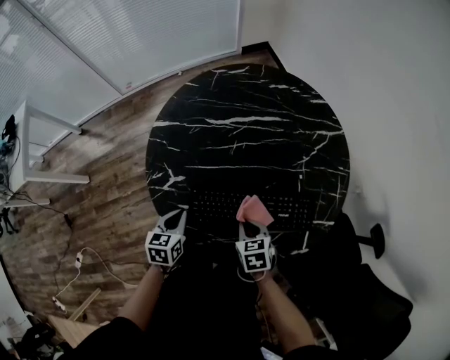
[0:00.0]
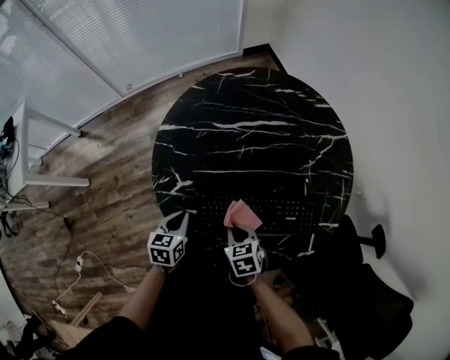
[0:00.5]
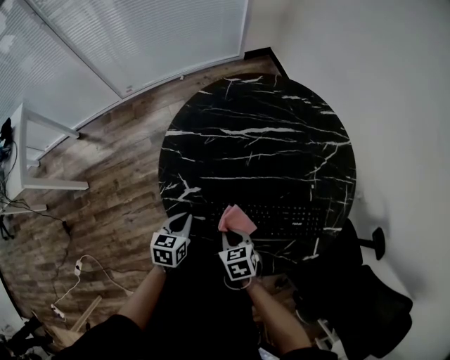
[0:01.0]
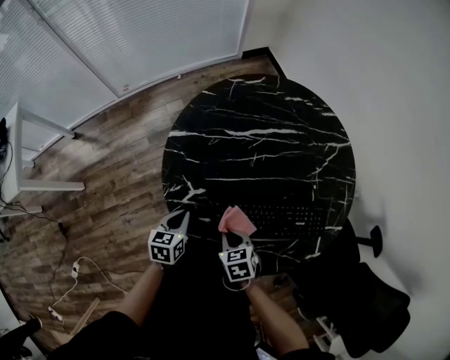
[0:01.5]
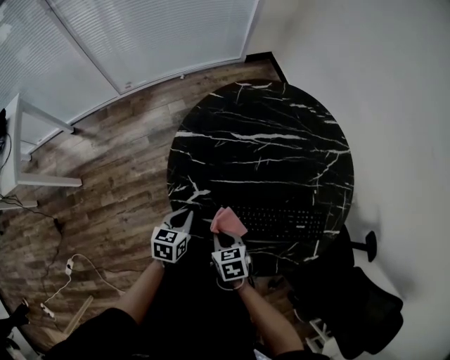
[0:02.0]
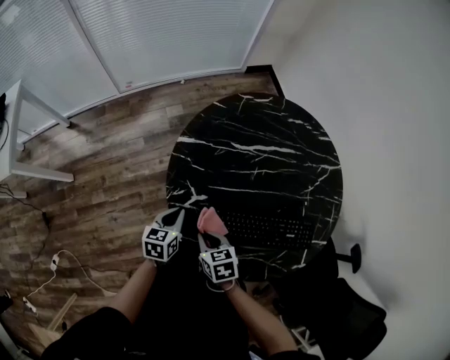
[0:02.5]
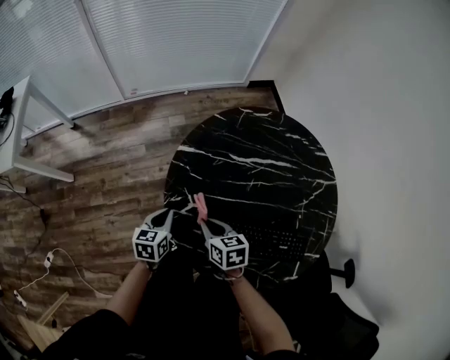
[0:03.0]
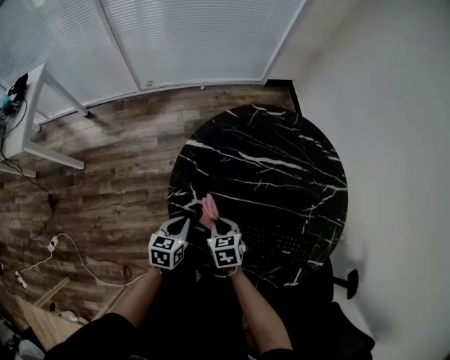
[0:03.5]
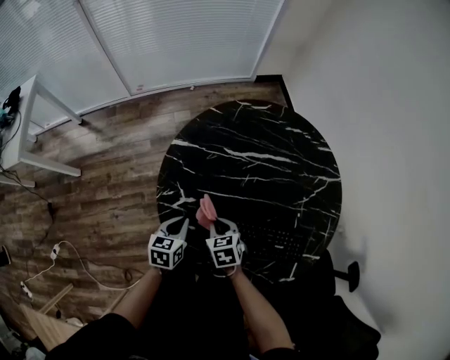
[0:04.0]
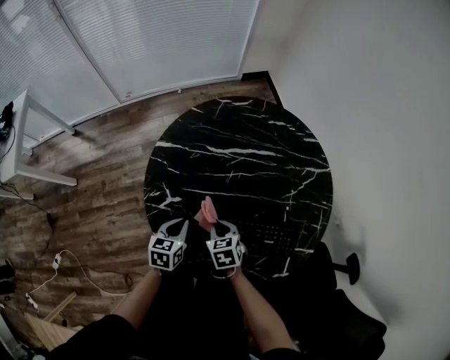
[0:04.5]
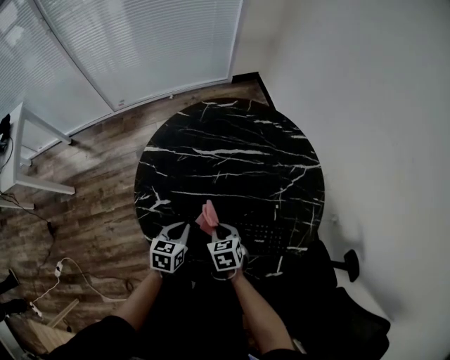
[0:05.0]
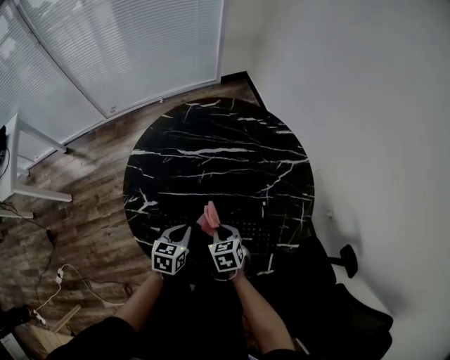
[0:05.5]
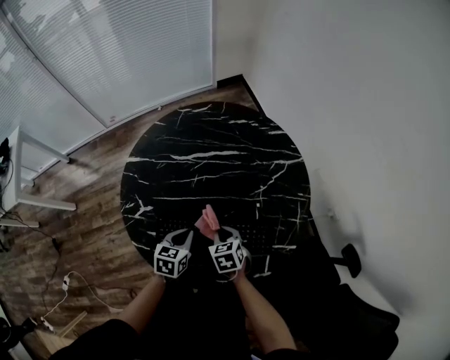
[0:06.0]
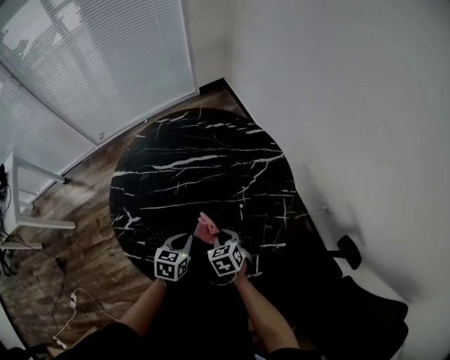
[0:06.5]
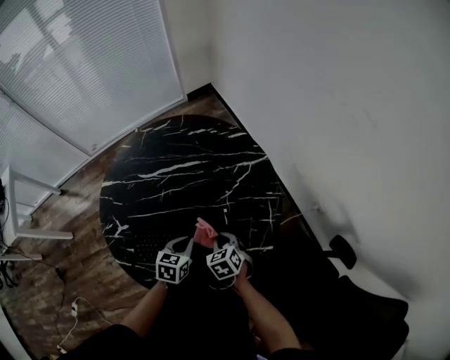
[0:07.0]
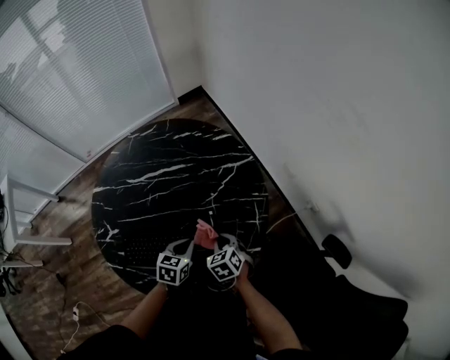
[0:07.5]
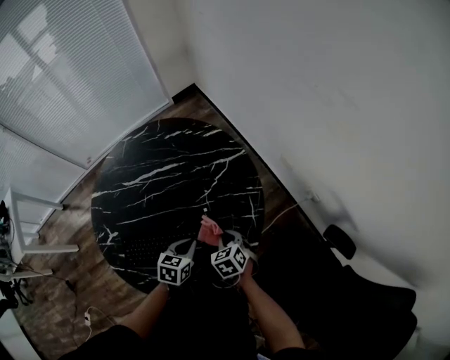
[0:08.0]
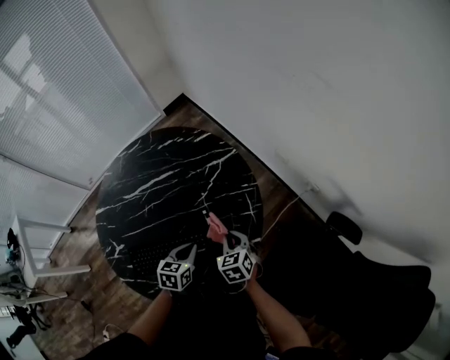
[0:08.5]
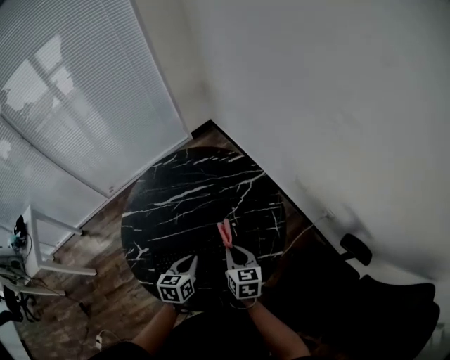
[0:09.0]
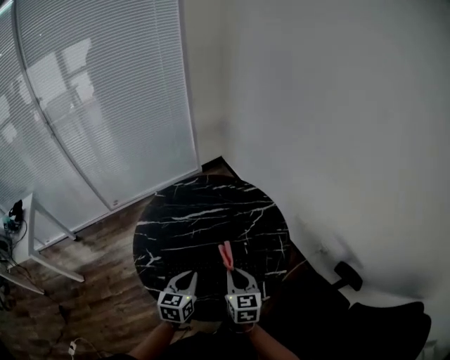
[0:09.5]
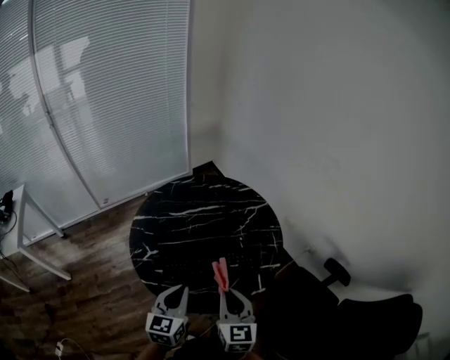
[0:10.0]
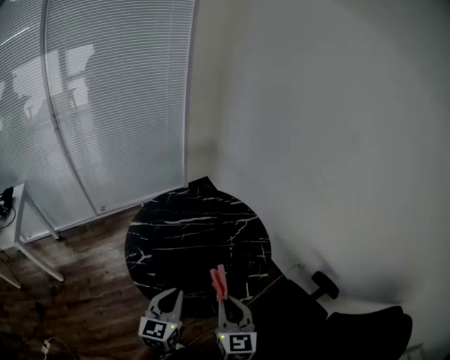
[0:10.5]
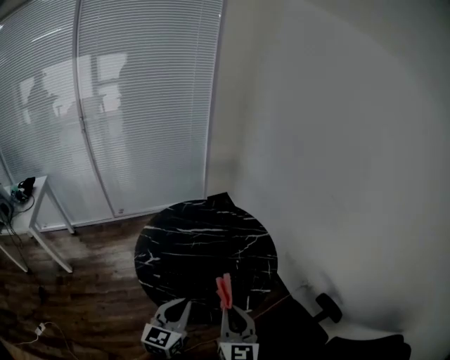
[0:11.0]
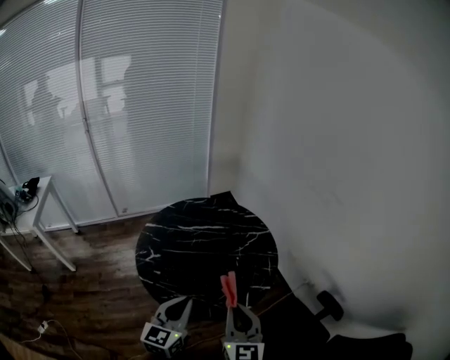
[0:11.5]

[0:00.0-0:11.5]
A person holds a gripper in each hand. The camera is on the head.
0:00.0 to 0:02.0: The left gripper is displaced to the left by roughly 5 cm. Meanwhile the right gripper goes about 15 cm to the left.
0:02.0 to 0:04.0: The right gripper is displaced forward and to the right by some 10 cm.
0:04.0 to 0:06.0: The two grippers go some 20 cm to the right.
0:06.0 to 0:07.5: Both grippers travel together to the right, roughly 15 cm.
0:07.5 to 0:09.5: The grippers both shift upward, to the left and backward by some 25 cm. The left gripper swivels about 20 degrees, while the right gripper points its fingers about 30 degrees further upward.
0:09.5 to 0:11.5: Both grippers travel together backward and upward, about 25 cm. The left gripper swivels approximately 20 degrees.

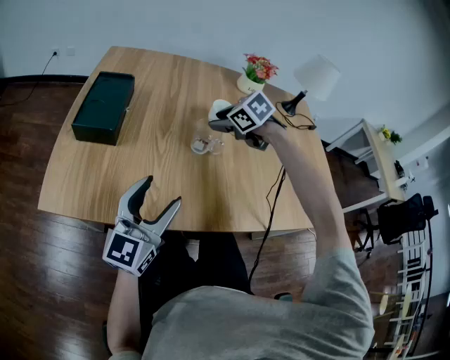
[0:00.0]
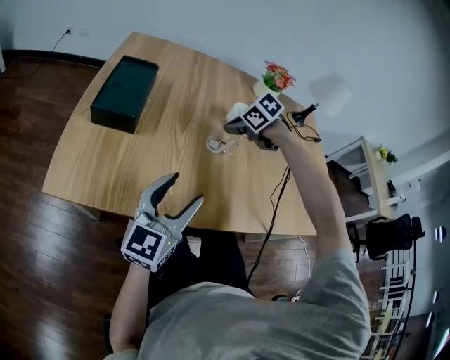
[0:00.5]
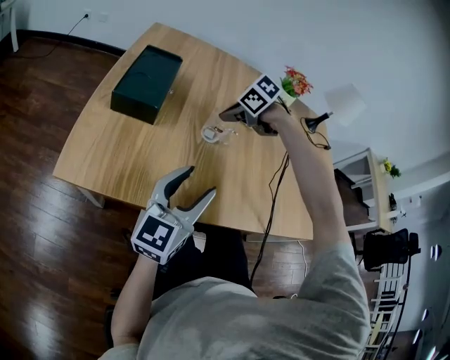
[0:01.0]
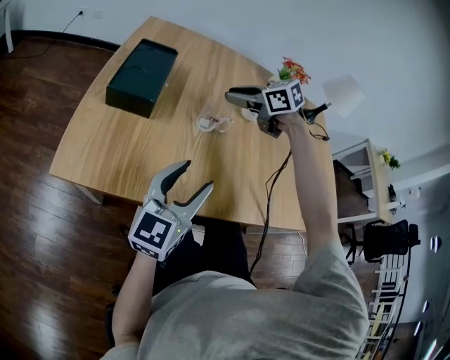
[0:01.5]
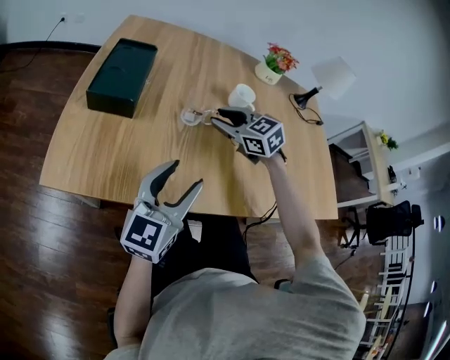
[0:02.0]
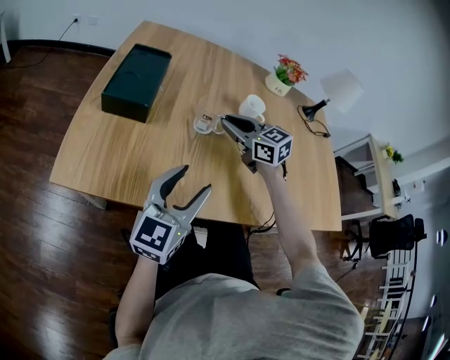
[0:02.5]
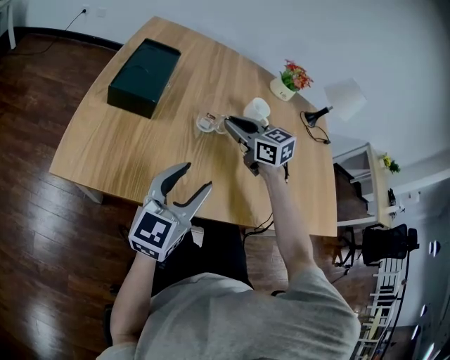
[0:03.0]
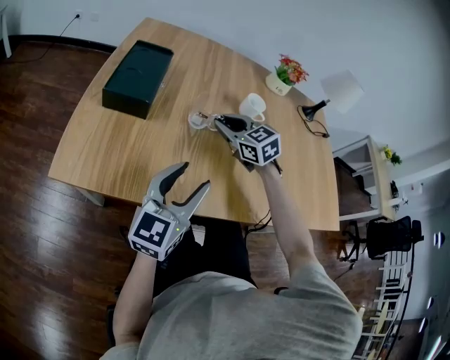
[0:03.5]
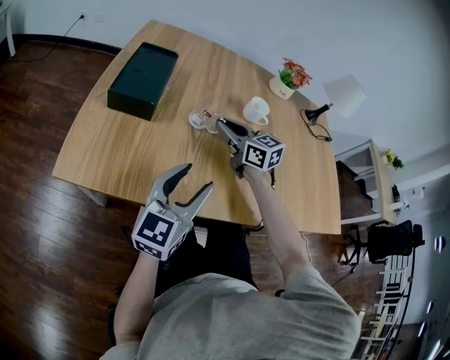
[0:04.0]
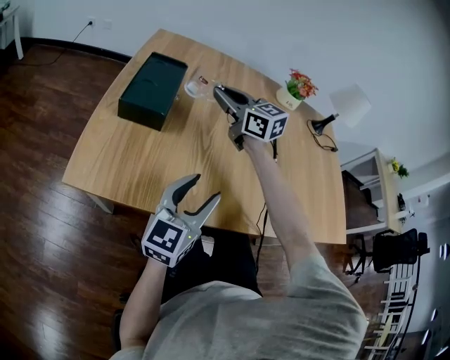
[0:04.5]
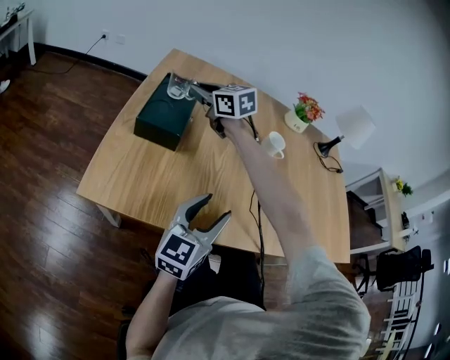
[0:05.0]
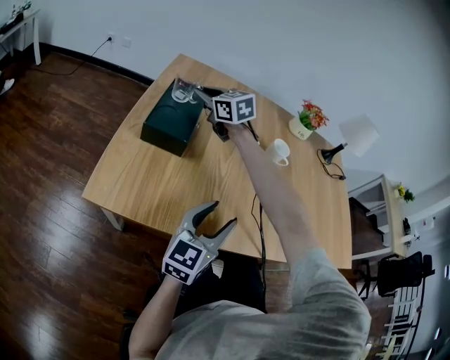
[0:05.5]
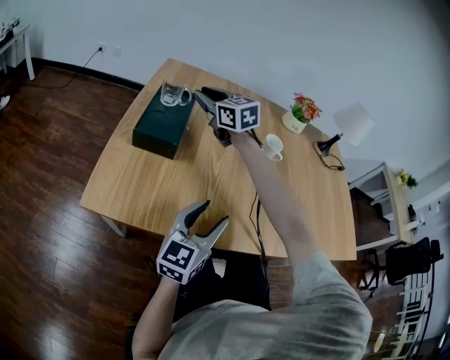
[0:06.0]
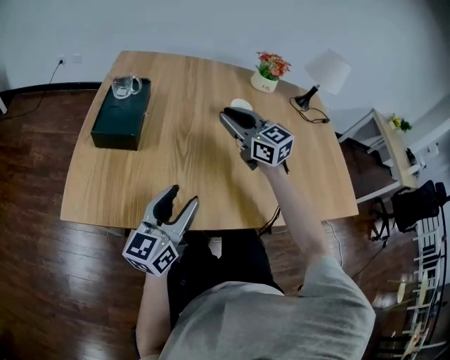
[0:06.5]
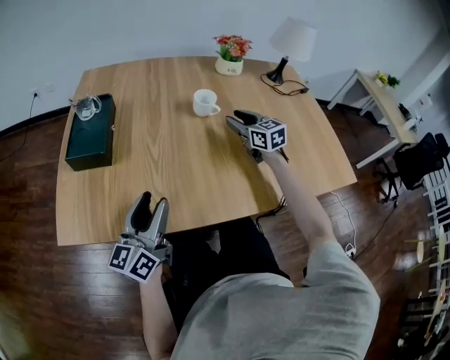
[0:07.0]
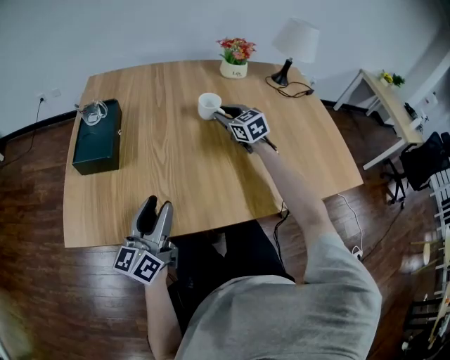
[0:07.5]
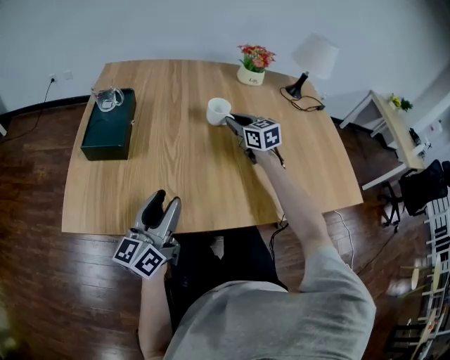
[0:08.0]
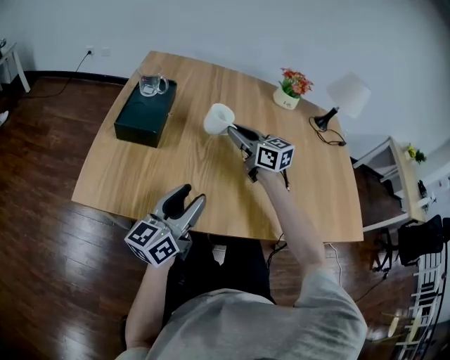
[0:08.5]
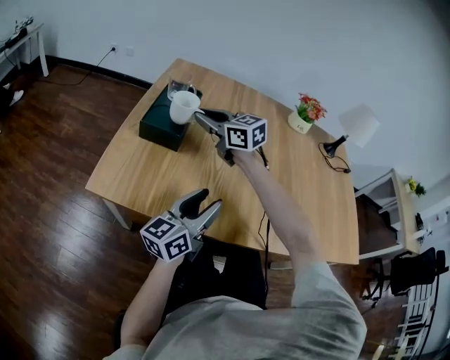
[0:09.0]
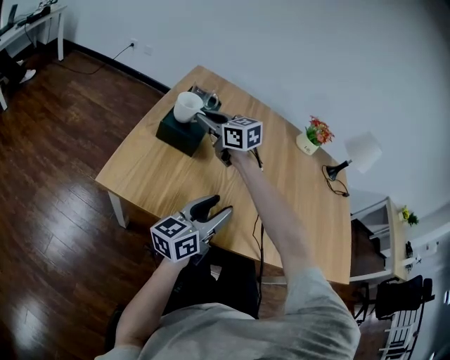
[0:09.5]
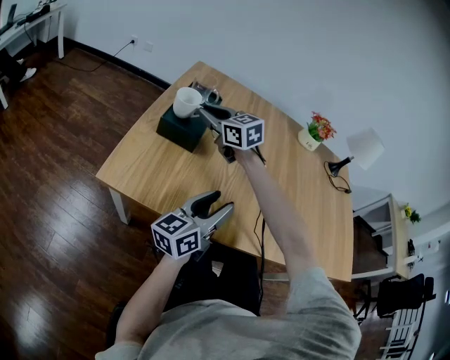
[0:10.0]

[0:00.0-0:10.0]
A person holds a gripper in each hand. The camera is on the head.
0:00.0 to 0:02.0: The right gripper moves to the left, roughly 10 cm, changes its angle by roughly 20 degrees, and closes and opens again.
0:02.0 to 0:04.0: The right gripper turns by approximately 30 degrees.
0:04.0 to 0:06.0: The right gripper moves to the left, forward and upward, some 25 cm.
0:06.0 to 0:08.0: The right gripper shifts roughly 35 cm to the right, and swivels some 20 degrees.
0:08.0 to 0:10.0: The right gripper goes roughly 40 cm to the left, and turns by some 30 degrees.

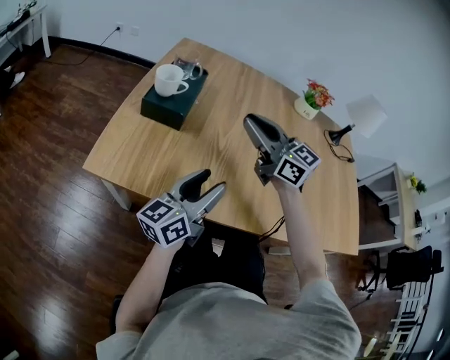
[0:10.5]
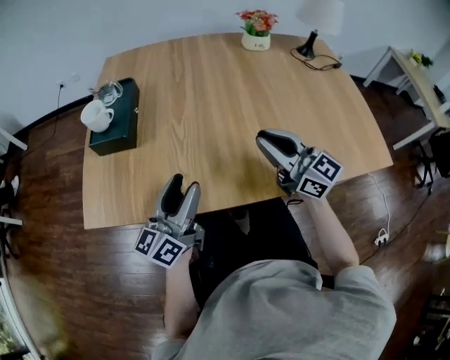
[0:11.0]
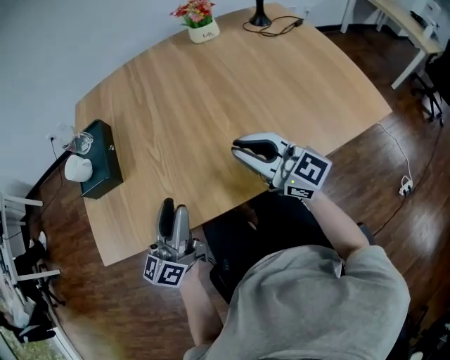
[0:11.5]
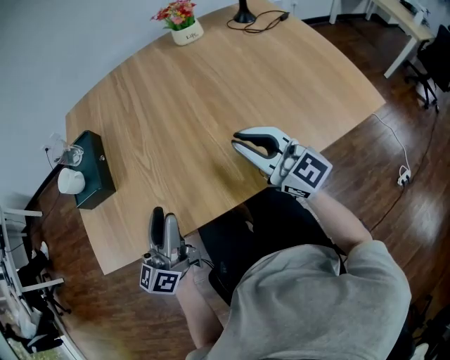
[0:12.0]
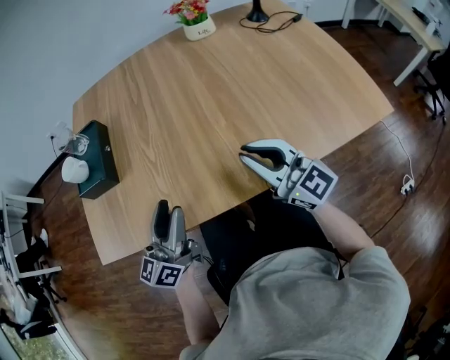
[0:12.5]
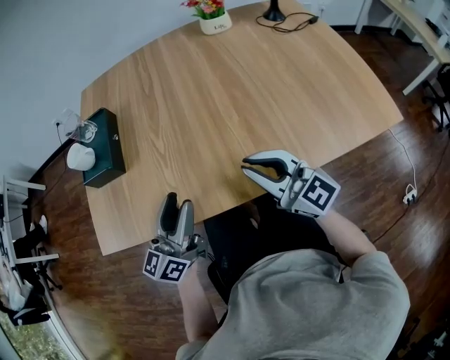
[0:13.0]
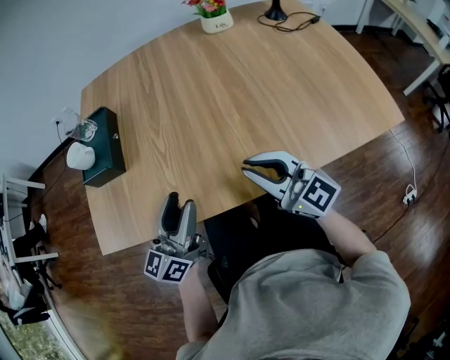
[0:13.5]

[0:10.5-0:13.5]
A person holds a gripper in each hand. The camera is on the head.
0:10.5 to 0:12.0: The right gripper is displaced to the right and backward by roughly 25 cm, and turns by some 30 degrees.
0:12.0 to 0:13.5: The right gripper is displaced to the left by roughly 5 cm.

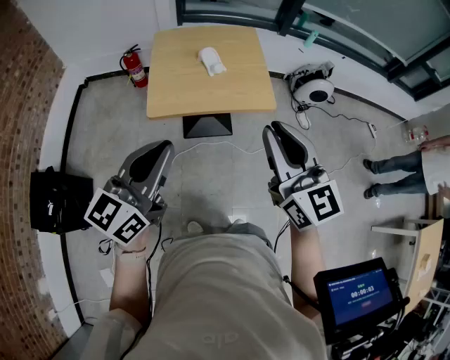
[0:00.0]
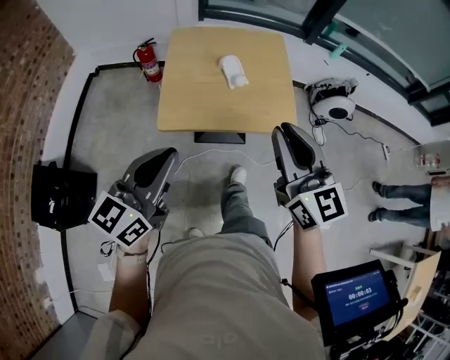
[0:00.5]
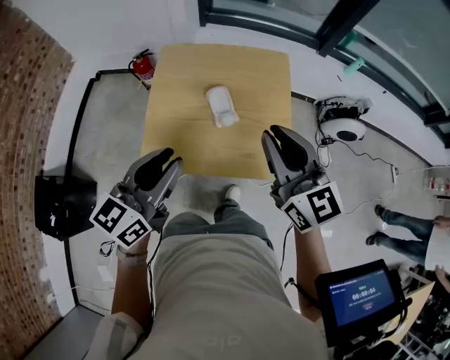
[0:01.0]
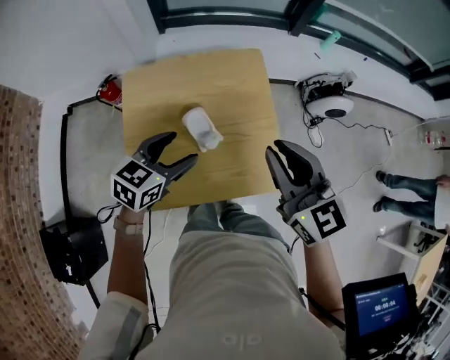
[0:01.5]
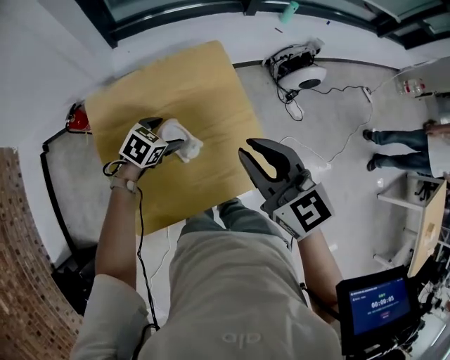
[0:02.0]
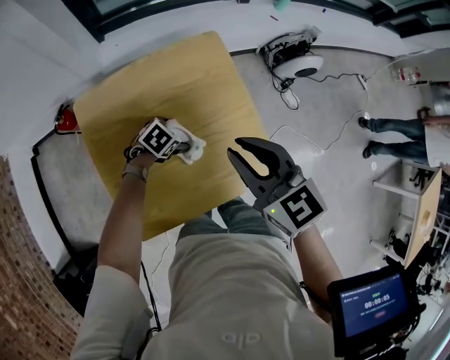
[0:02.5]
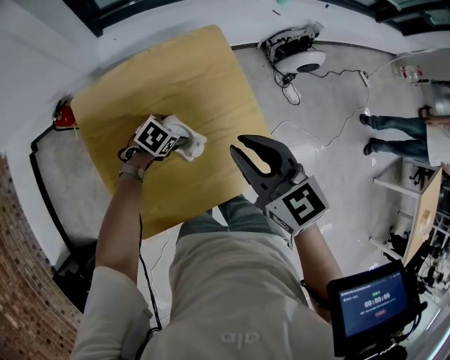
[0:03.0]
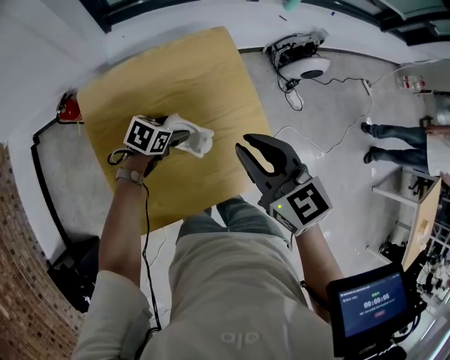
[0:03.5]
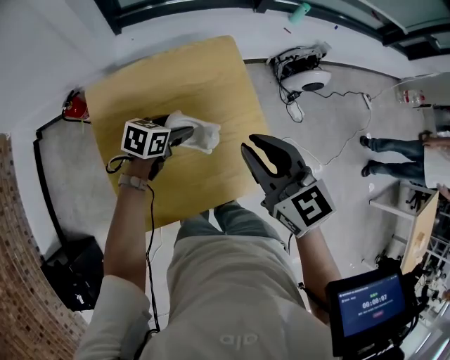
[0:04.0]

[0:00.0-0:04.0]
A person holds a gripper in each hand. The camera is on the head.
0:00.0 to 0:02.0: The pair of grippers is taken some 50 cm. The left gripper tips its fingers downward by approximately 50 degrees, and opens its fingers; the right gripper turns by some 20 degrees.
0:02.0 to 0:04.0: The left gripper reaches about 10 cm downward, then returns, and turns by about 30 degrees.
